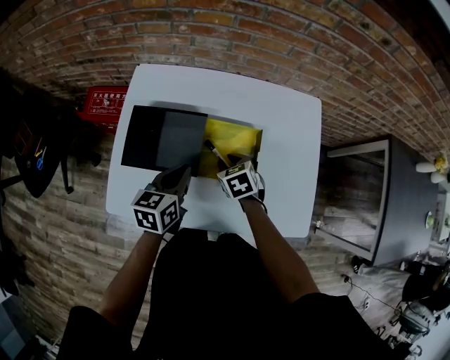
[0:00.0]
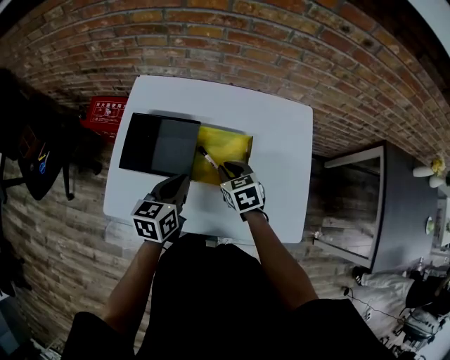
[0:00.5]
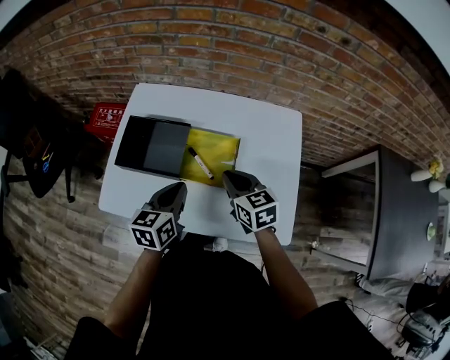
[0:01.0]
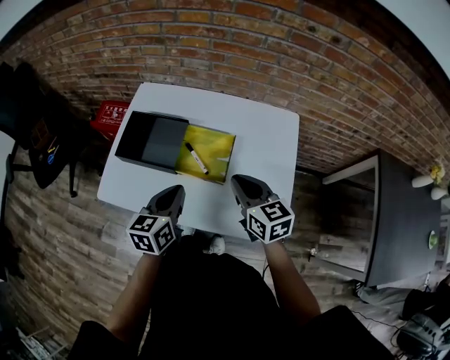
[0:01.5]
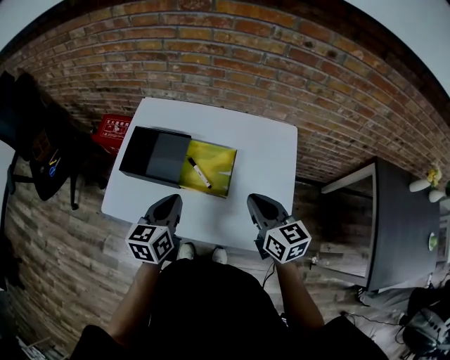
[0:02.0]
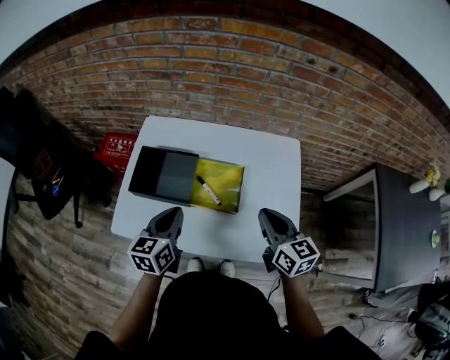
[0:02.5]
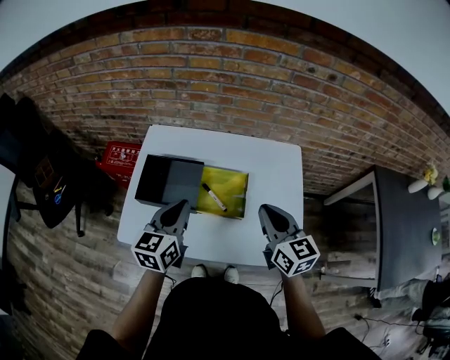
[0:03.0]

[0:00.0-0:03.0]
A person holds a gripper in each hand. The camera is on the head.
0:00.0 to 0:01.5: The left gripper travels backward, to the right and upward by approximately 15 cm, while the right gripper is displaced upward, to the right and backward by roughly 25 cm, angles its fingers upward, by roughly 40 degrees, and closes up.
0:01.5 to 0:03.0: The right gripper heads upward, covering approximately 5 cm; the left gripper travels upward, to the left and forward by roughly 10 cm.

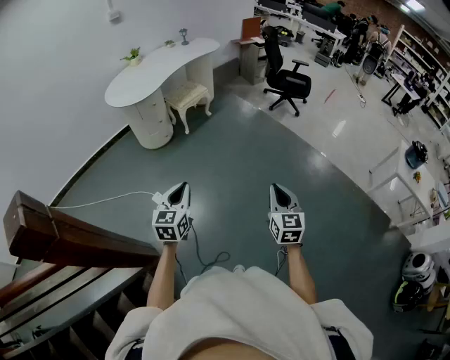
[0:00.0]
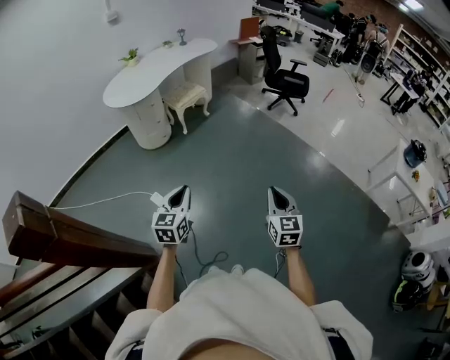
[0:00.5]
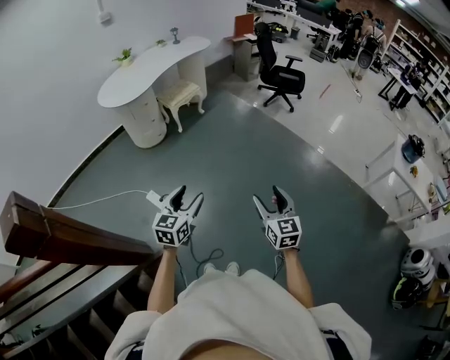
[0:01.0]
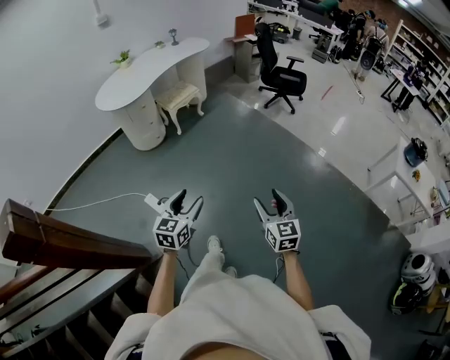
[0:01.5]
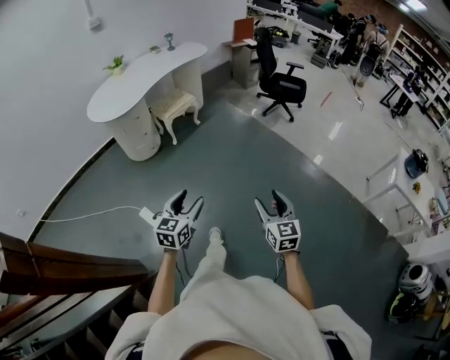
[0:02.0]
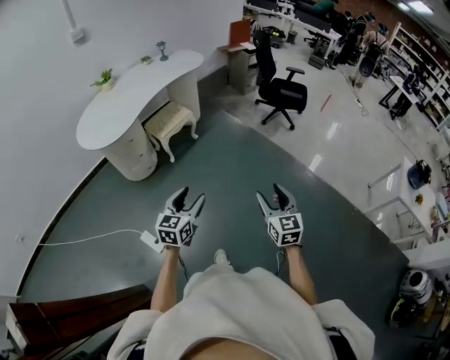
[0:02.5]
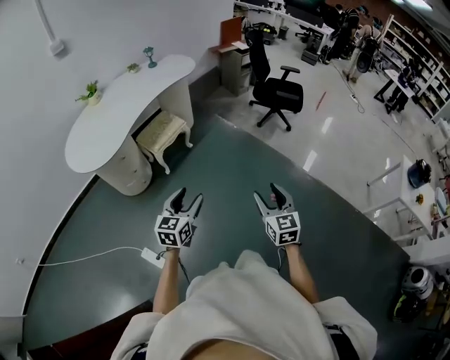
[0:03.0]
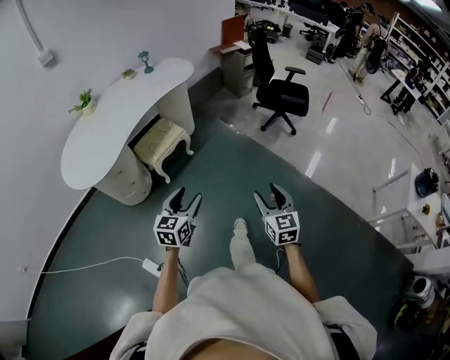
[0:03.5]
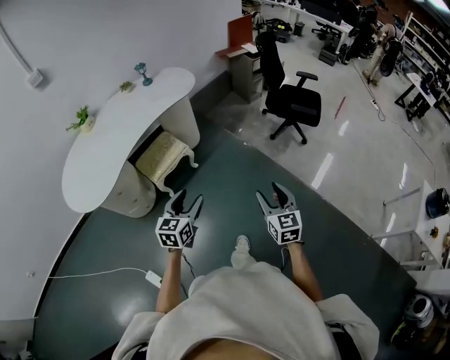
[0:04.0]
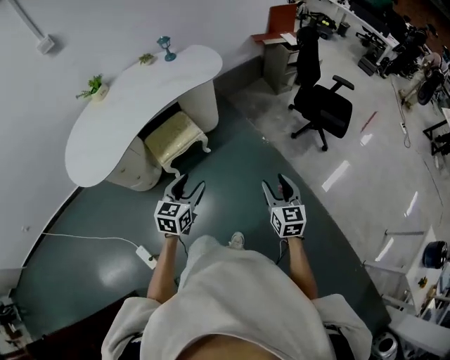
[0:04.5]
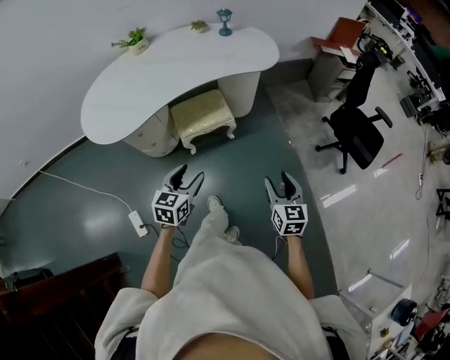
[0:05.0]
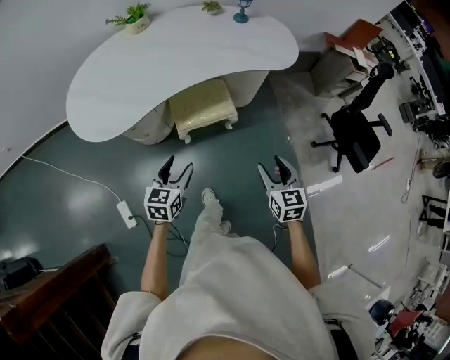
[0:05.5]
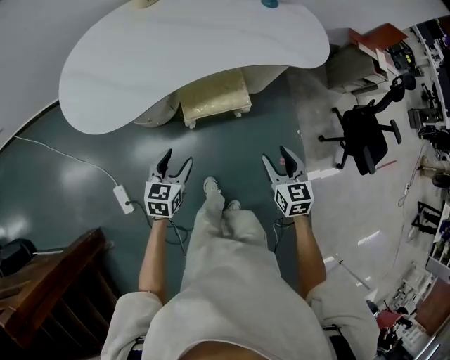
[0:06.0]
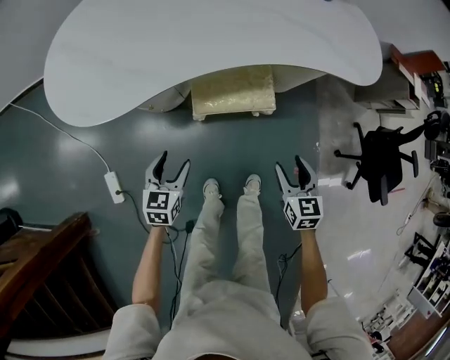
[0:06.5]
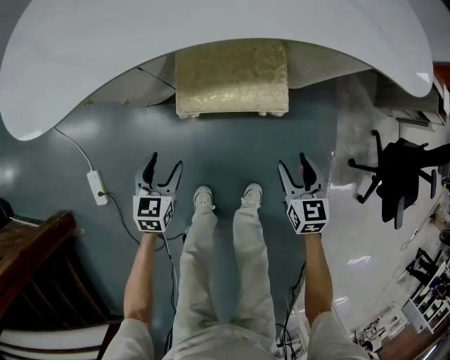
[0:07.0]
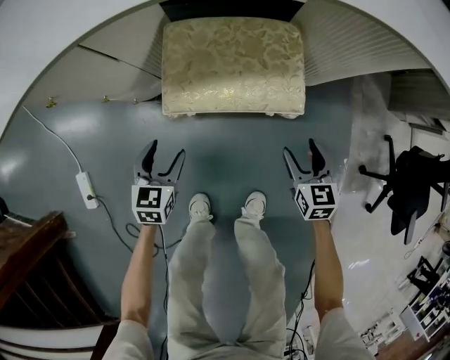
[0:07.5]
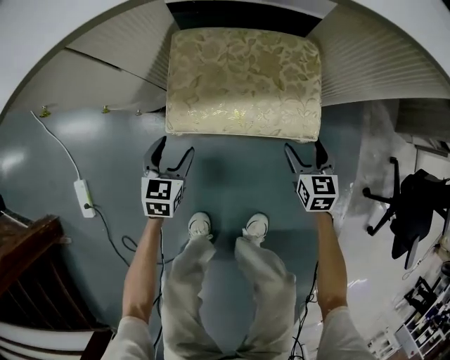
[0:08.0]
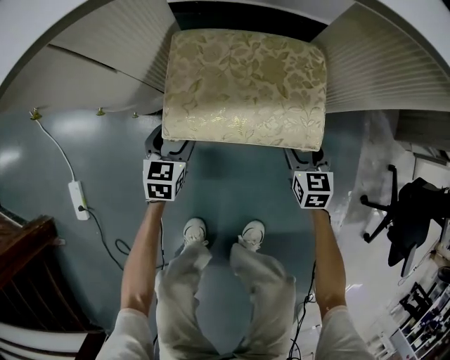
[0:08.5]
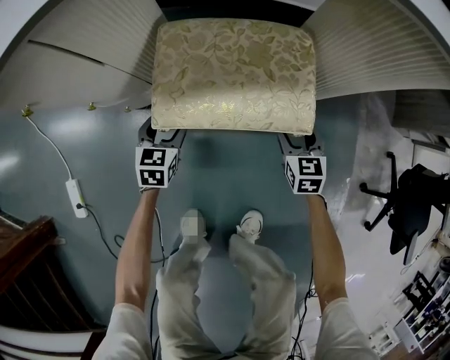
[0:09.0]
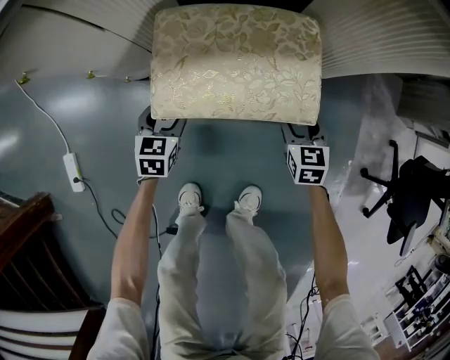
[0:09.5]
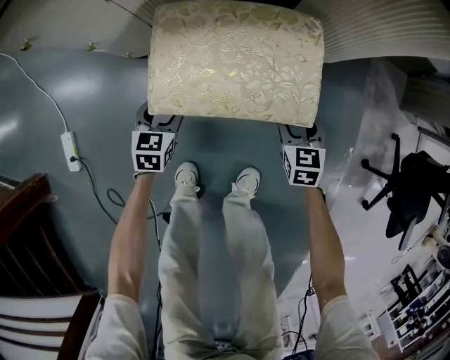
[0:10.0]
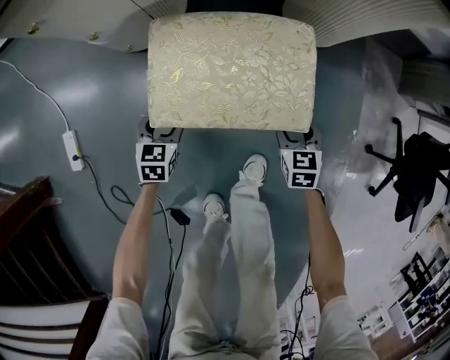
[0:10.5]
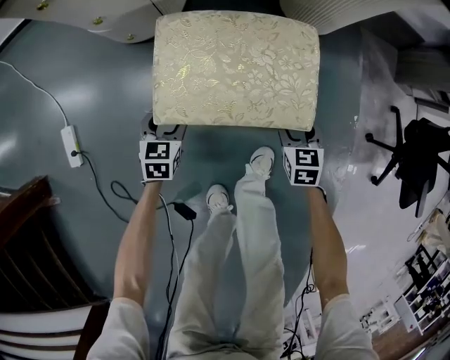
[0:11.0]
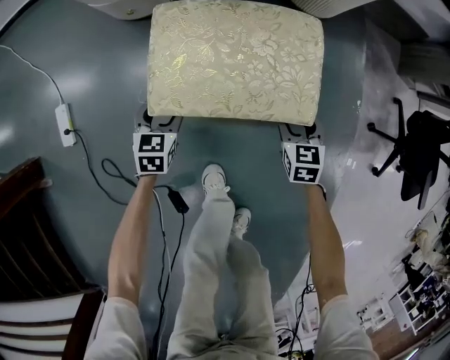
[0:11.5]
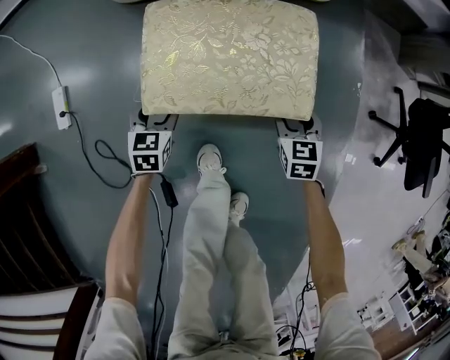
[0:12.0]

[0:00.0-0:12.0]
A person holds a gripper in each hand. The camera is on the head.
0:00.0 to 0:02.0: The grippers both shift forward and to the right by roughly 15 cm. The right gripper opens. Meanwhile the left gripper opens.
0:02.0 to 0:04.0: Both grippers are carried forward, some 70 cm.
0:04.0 to 0:06.0: The right gripper ends up some 50 cm from where it was, and rotates some 40 degrees. Meanwhile the left gripper moves some 40 cm, and changes its angle by some 40 degrees.
0:06.0 to 0:08.0: The left gripper goes approximately 50 cm downward, while the right gripper is displaced downward and forward by some 60 cm, and opens up.
0:08.0 to 0:10.0: The left gripper goes some 5 cm forward.
0:10.0 to 0:12.0: The grippers move only a little.

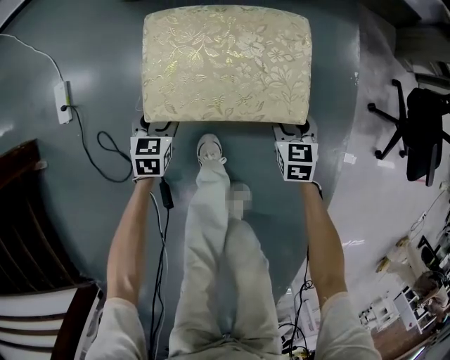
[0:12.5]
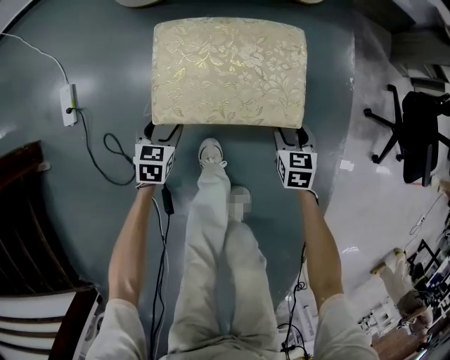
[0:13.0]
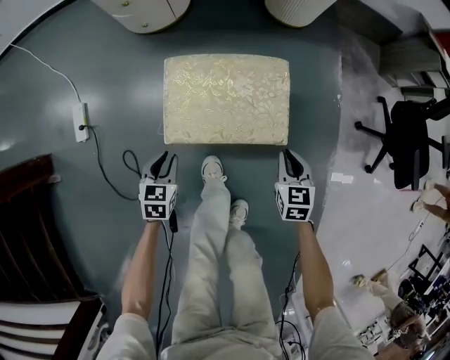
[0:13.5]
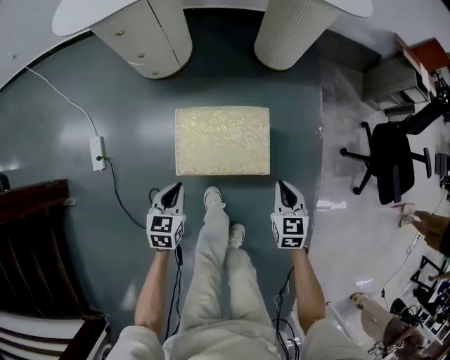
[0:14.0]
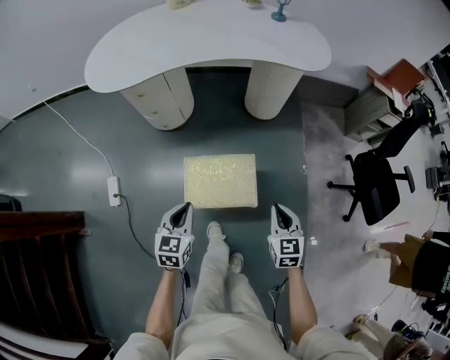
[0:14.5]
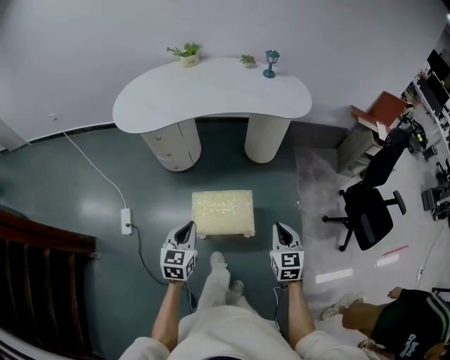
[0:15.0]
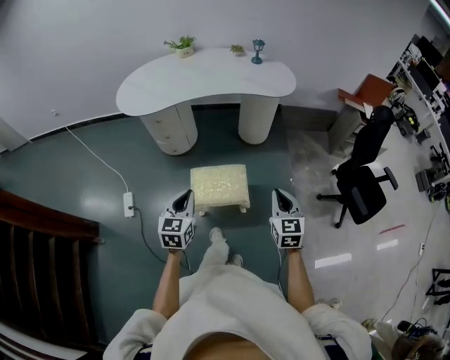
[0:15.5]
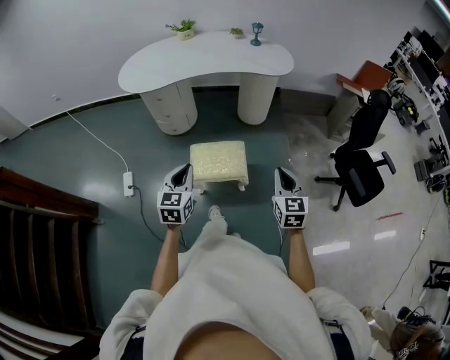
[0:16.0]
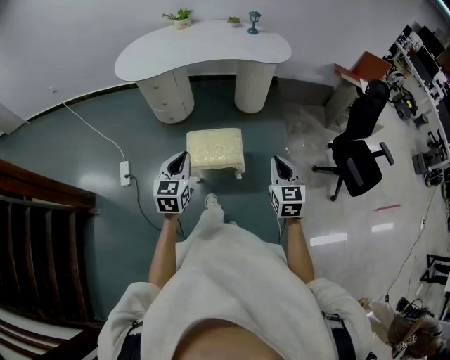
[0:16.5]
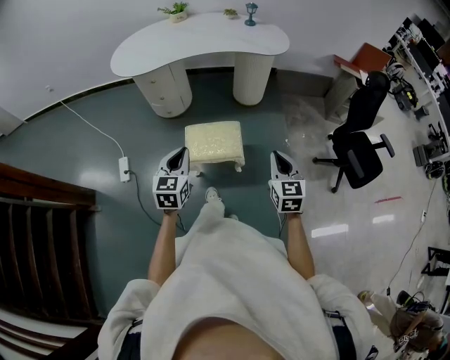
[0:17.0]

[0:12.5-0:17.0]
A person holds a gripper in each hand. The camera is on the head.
0:12.5 to 0:14.5: The grippers both shift upward by about 50 cm. The left gripper closes. Meanwhile the right gripper closes up.
0:14.5 to 0:17.0: The grippers both shift upward and backward by approximately 30 cm.

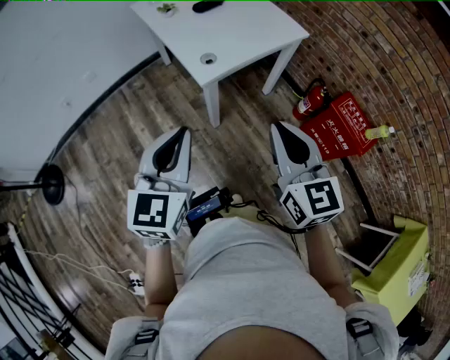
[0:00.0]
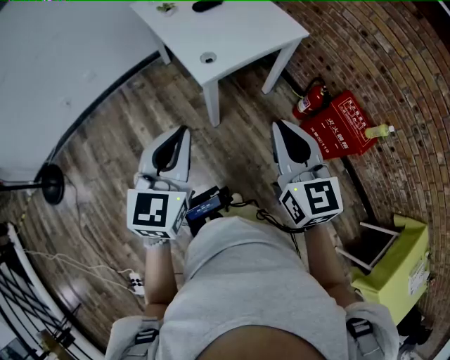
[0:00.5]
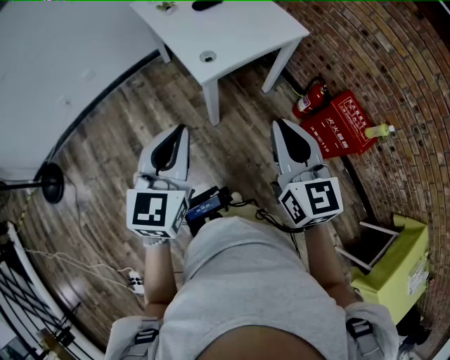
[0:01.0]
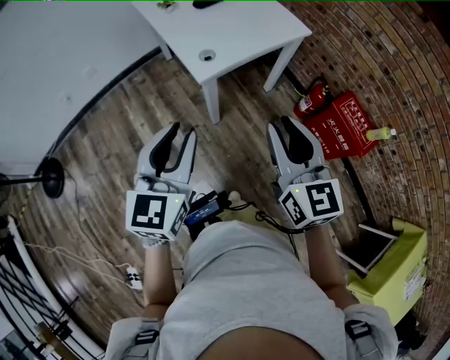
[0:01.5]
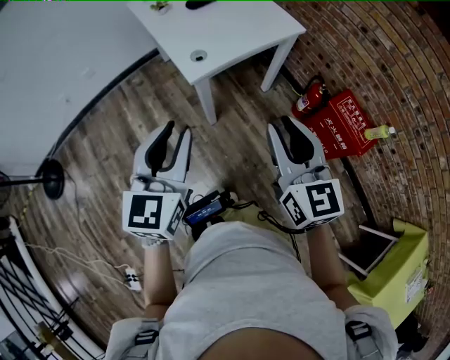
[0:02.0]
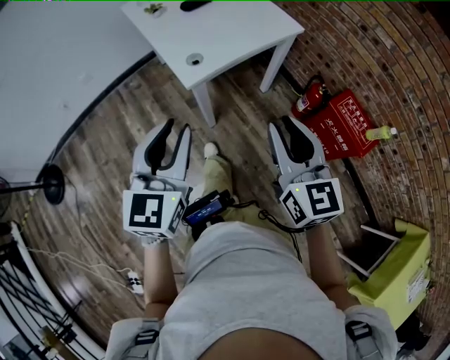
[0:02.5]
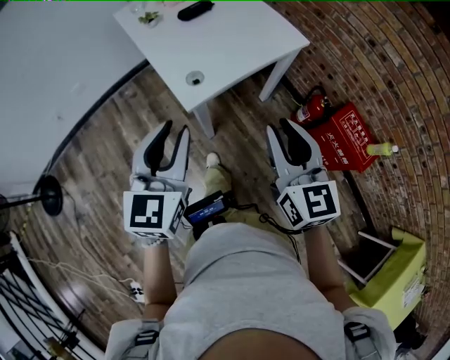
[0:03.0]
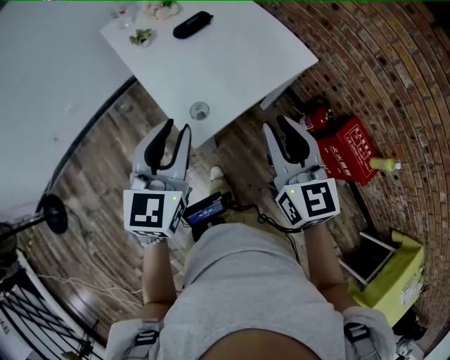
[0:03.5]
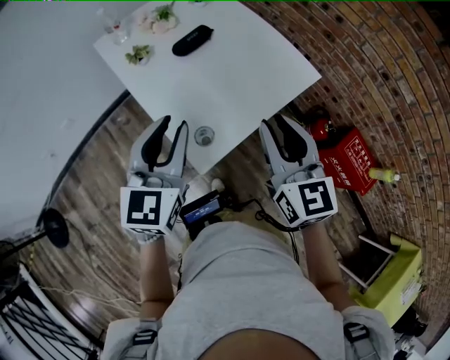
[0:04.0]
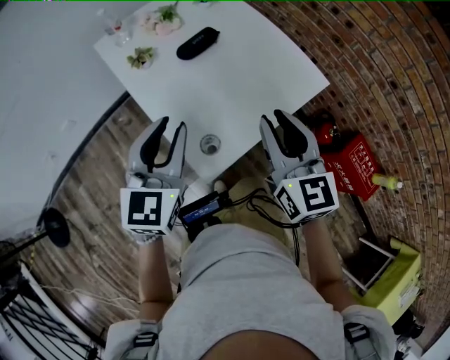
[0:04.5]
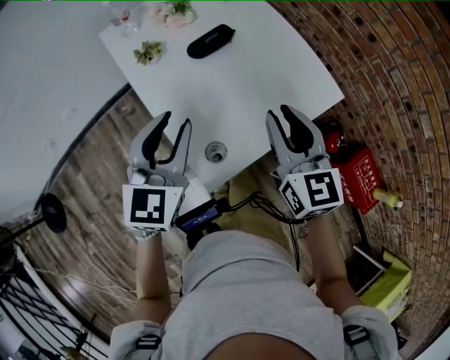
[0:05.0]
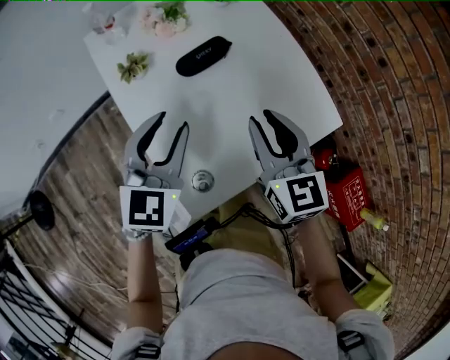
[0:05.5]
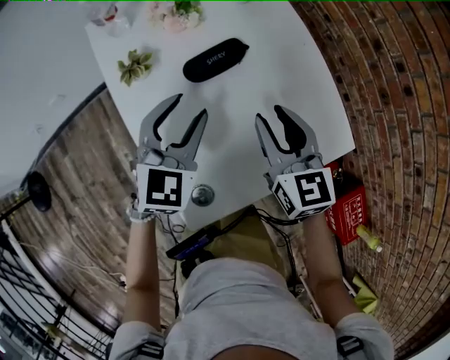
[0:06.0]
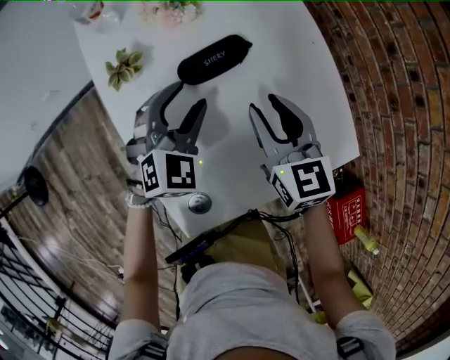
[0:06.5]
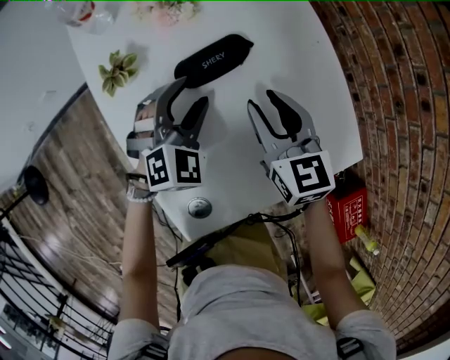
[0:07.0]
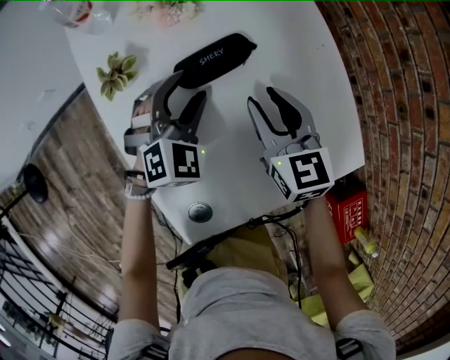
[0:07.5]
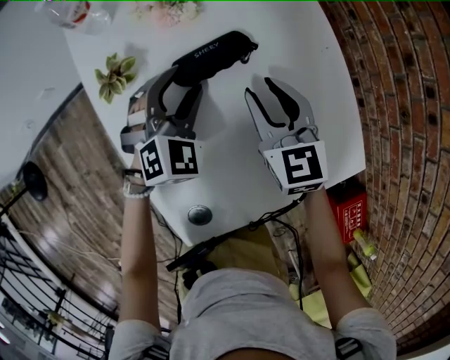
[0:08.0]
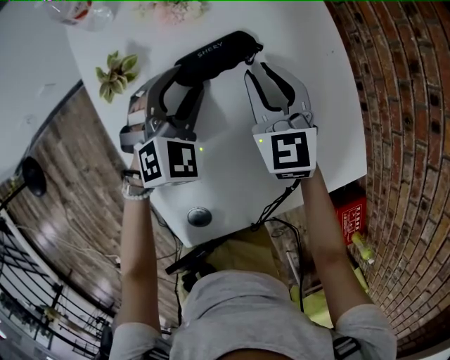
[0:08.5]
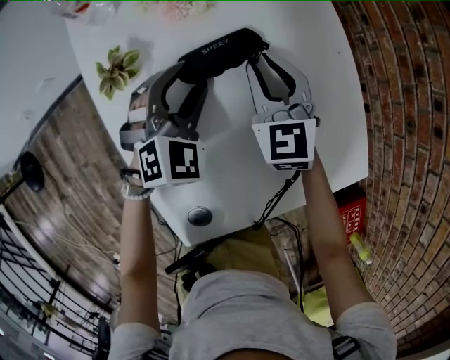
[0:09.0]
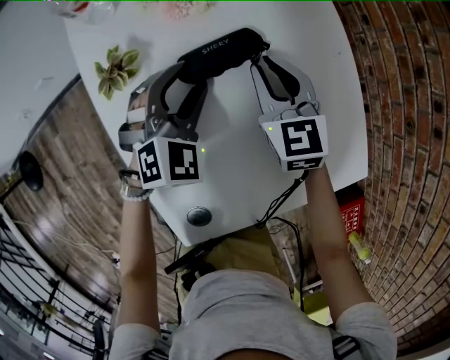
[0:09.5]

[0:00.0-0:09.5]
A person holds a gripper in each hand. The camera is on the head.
0:00.0 to 0:02.0: The left gripper opens up, while the right gripper travels to the right by approximately 5 cm, and opens up.
0:02.0 to 0:04.0: The two grippers go about 35 cm forward.
0:04.0 to 0:05.5: The two grippers go some 15 cm forward.
0:05.5 to 0:07.5: Both grippers move forward and downward, approximately 20 cm. The left gripper turns by approximately 30 degrees, and opens its fingers.
0:07.5 to 0:09.5: The right gripper is displaced forward by about 10 cm.
